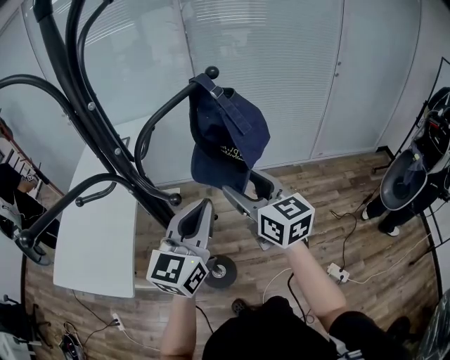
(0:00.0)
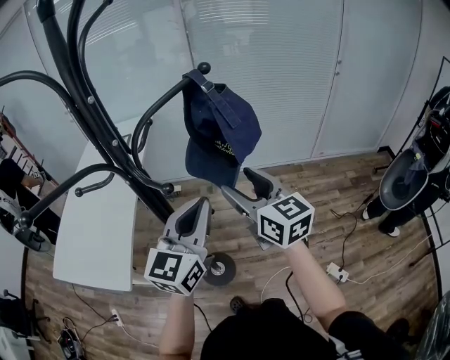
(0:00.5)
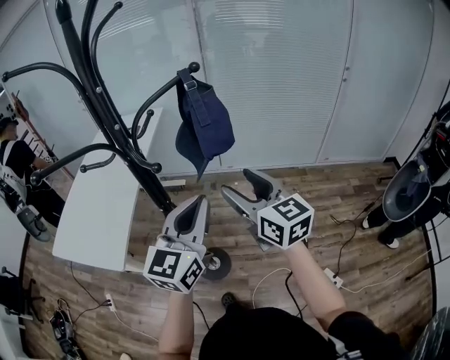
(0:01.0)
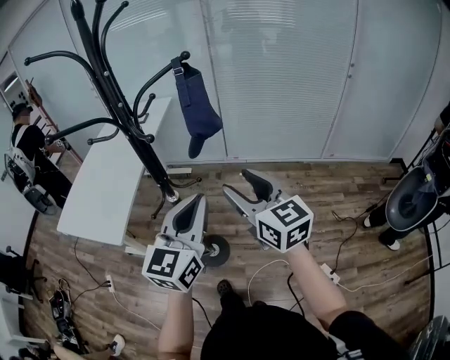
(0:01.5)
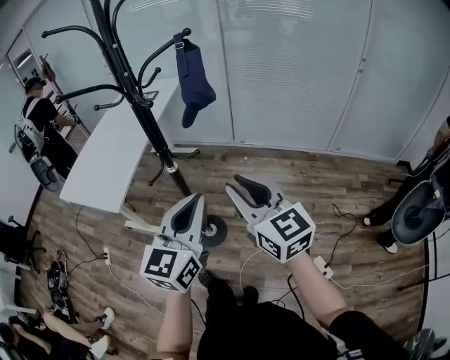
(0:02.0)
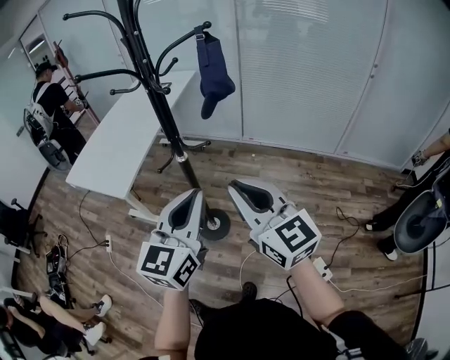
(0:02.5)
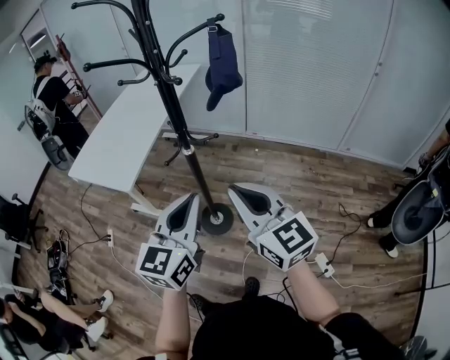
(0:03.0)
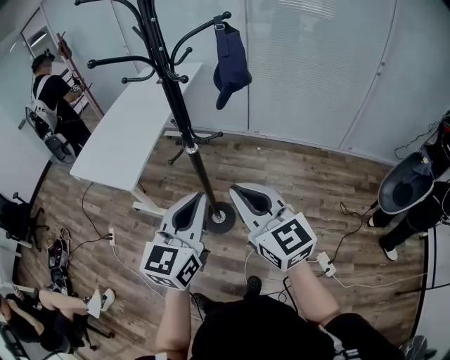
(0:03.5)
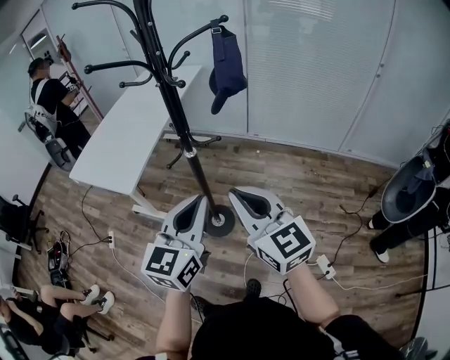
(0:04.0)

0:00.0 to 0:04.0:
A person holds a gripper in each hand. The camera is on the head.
0:00.0 to 0:02.0: Both grippers move backward, about 20 cm. The right gripper closes up.
0:02.0 to 0:04.0: The grippers both shift to the left by approximately 5 cm.

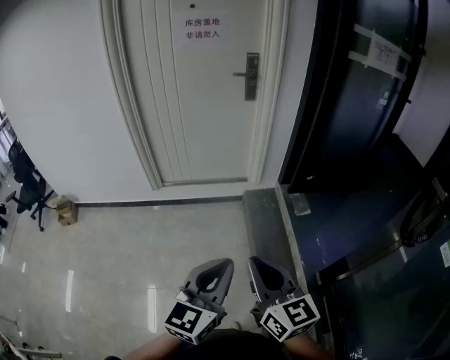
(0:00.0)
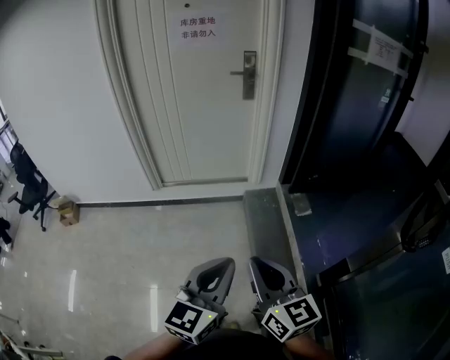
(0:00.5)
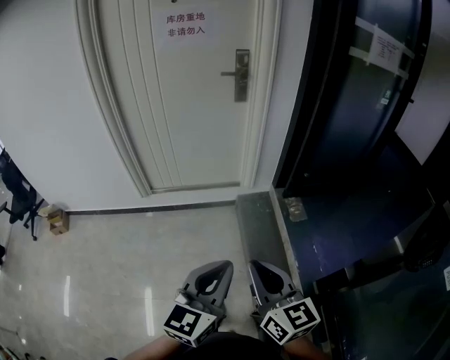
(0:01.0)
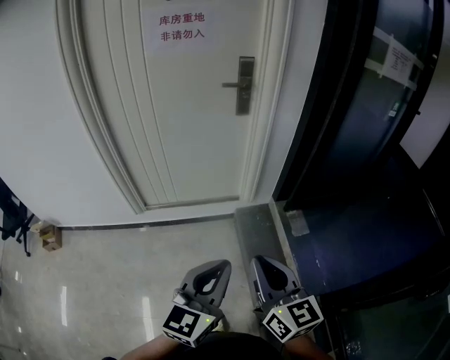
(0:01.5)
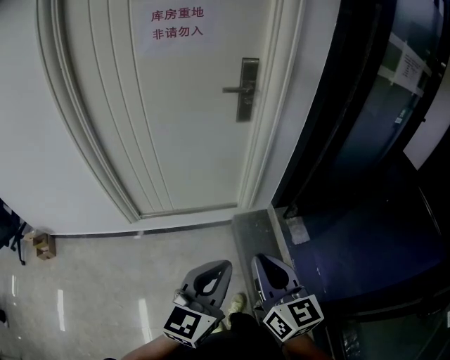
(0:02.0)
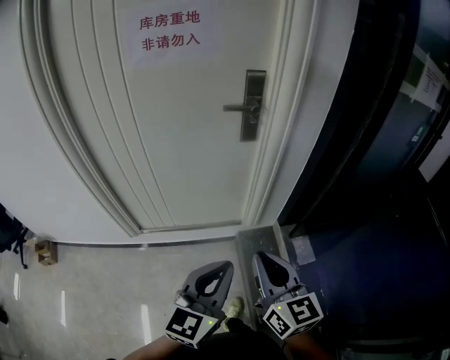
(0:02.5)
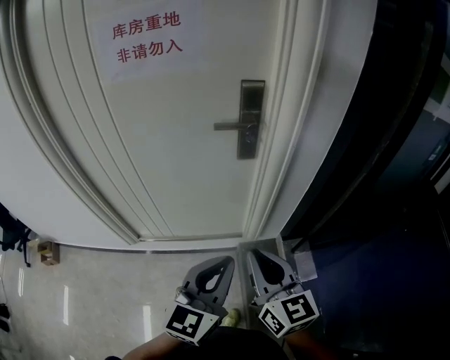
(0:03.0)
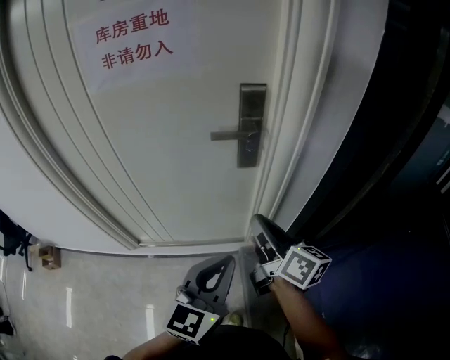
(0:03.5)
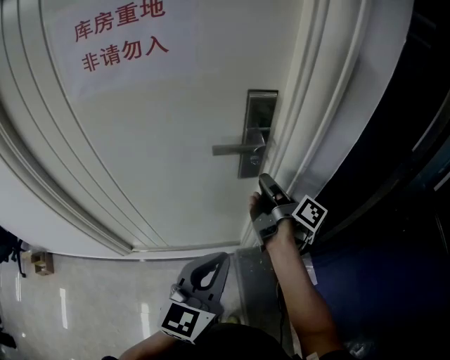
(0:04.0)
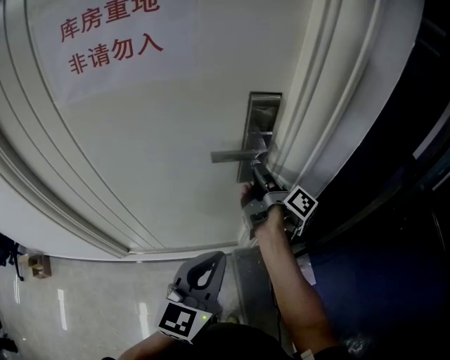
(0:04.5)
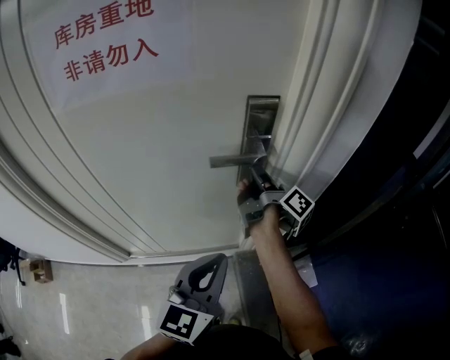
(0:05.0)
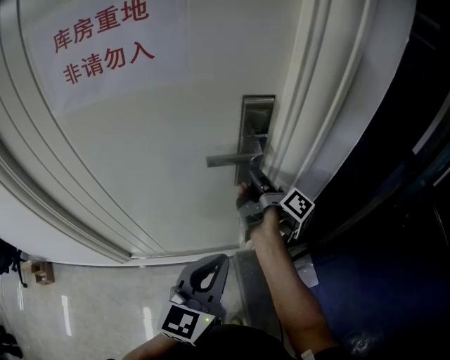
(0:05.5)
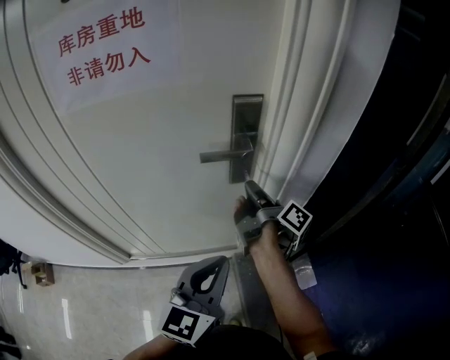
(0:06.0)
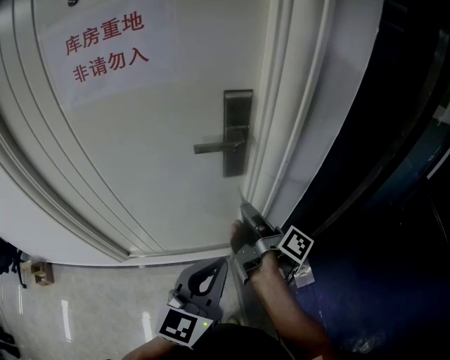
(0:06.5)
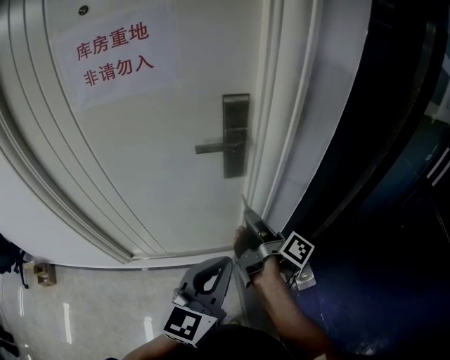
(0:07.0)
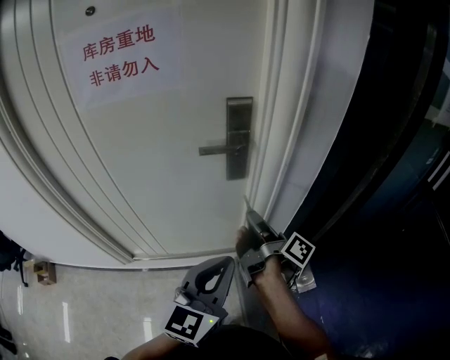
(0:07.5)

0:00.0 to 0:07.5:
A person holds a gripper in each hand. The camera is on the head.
0:00.0 to 0:02.0: Both grippers travel together forward, approximately 35 cm.
0:02.0 to 0:04.0: Both grippers travel together forward, approximately 50 cm. The right gripper twists about 70 degrees clockwise, seen from behind.
0:04.0 to 0:05.5: The right gripper shifts some 5 cm forward.
0:05.5 to 0:07.5: The right gripper moves backward, some 15 cm. Meanwhile the left gripper shifts about 10 cm backward and to the right.

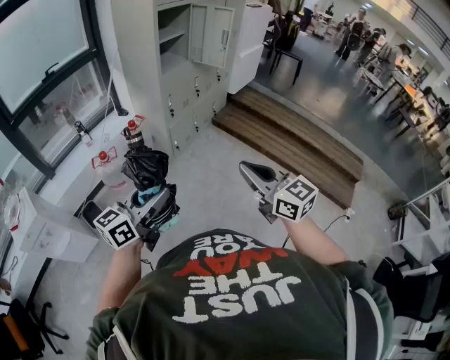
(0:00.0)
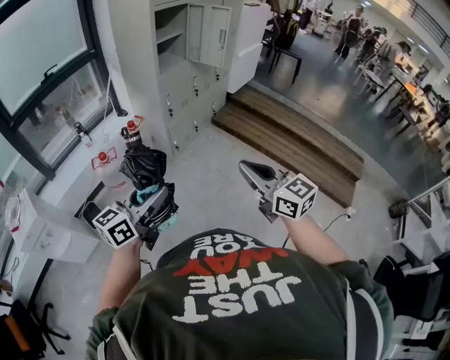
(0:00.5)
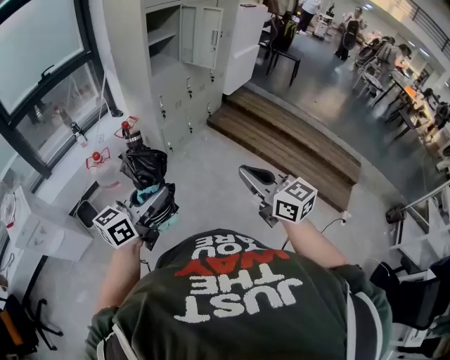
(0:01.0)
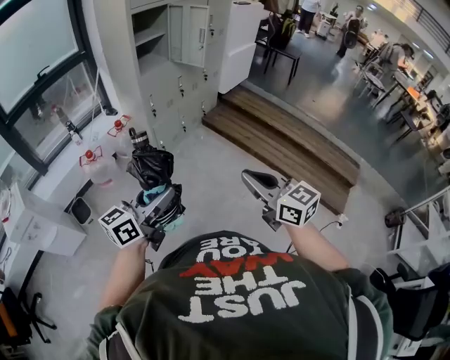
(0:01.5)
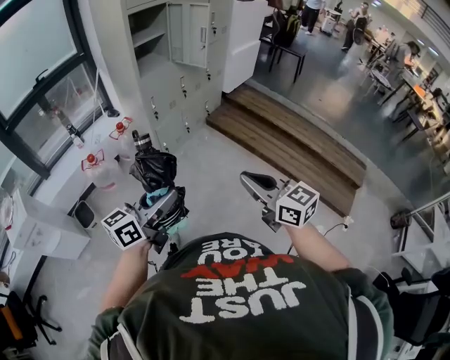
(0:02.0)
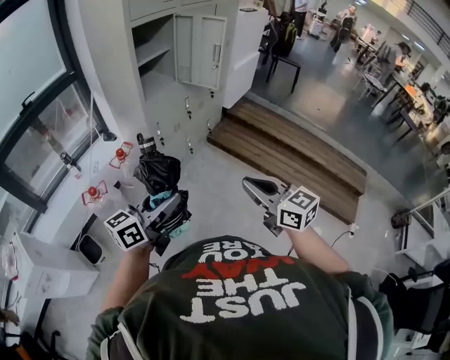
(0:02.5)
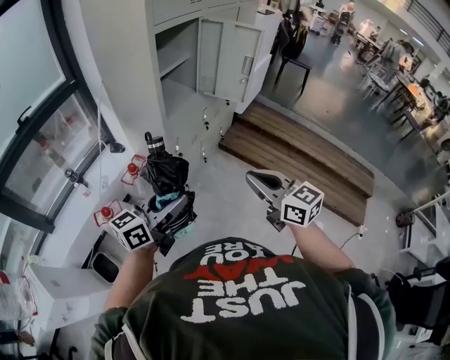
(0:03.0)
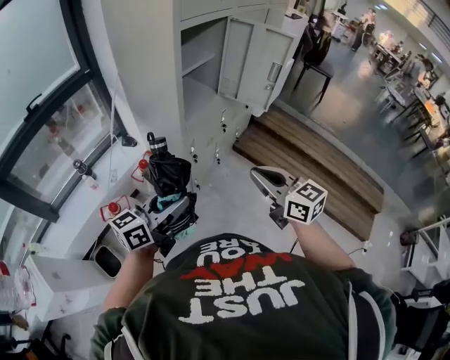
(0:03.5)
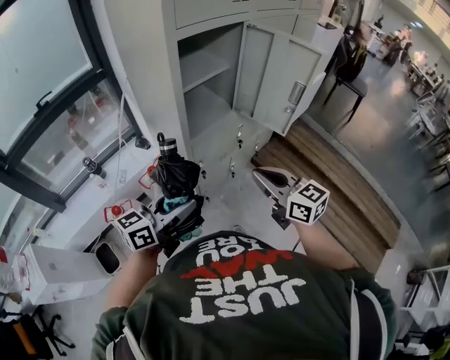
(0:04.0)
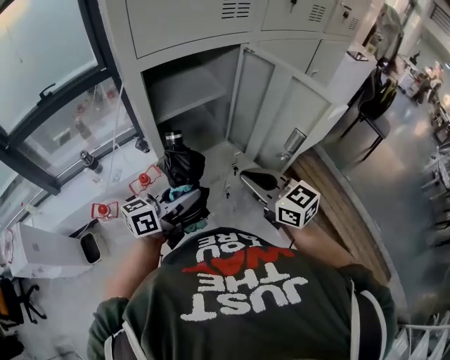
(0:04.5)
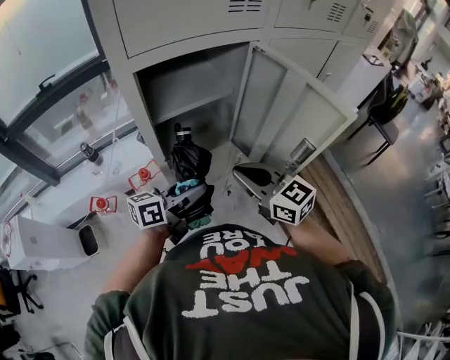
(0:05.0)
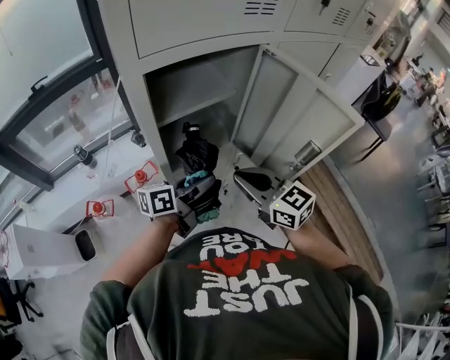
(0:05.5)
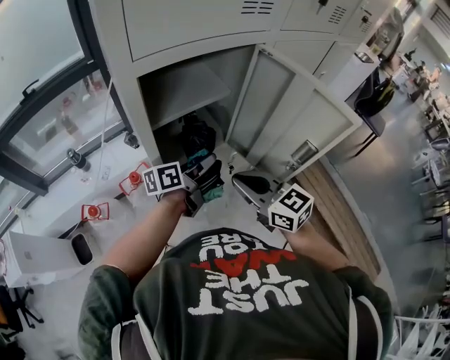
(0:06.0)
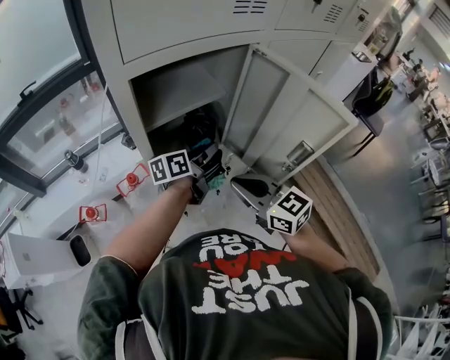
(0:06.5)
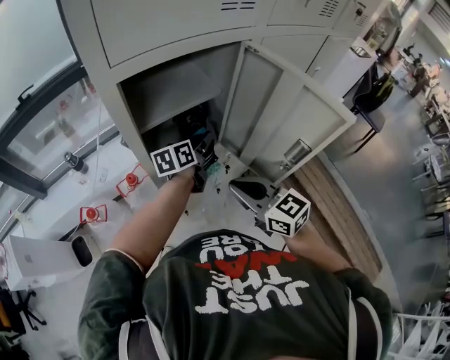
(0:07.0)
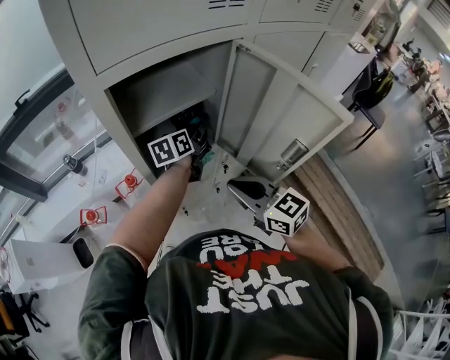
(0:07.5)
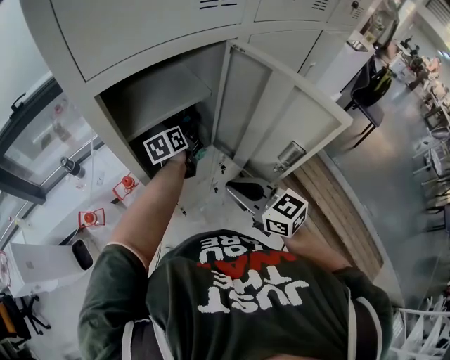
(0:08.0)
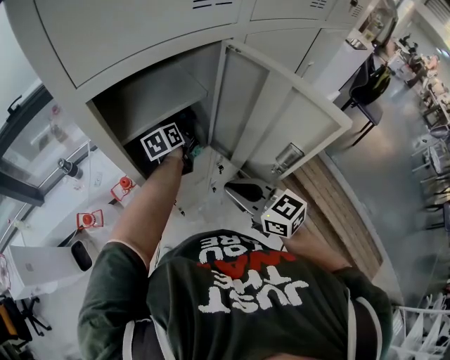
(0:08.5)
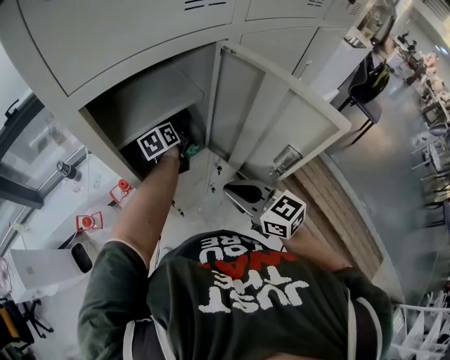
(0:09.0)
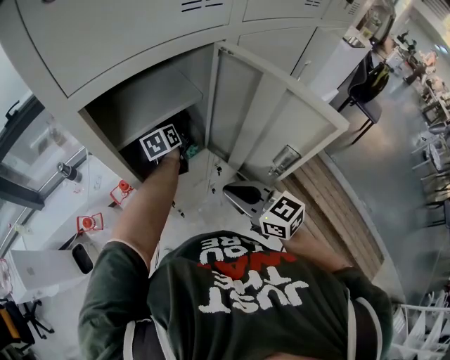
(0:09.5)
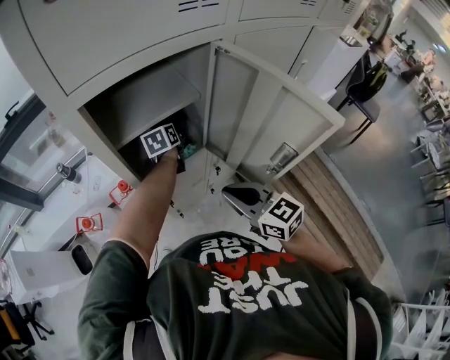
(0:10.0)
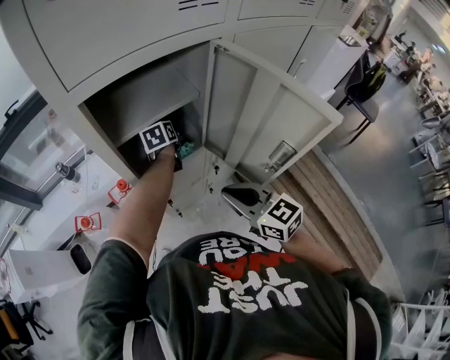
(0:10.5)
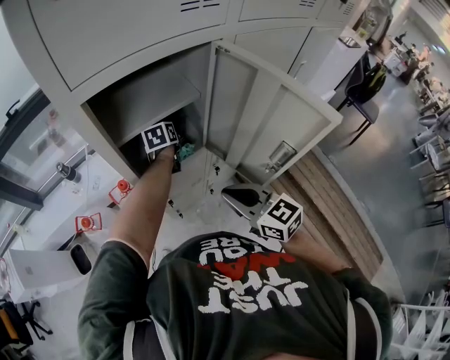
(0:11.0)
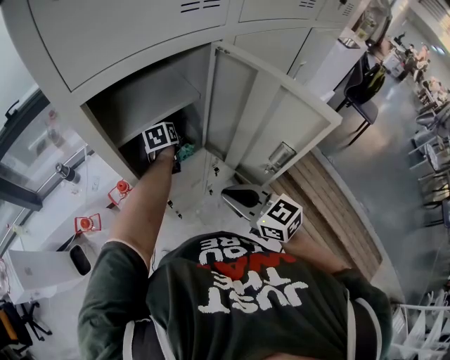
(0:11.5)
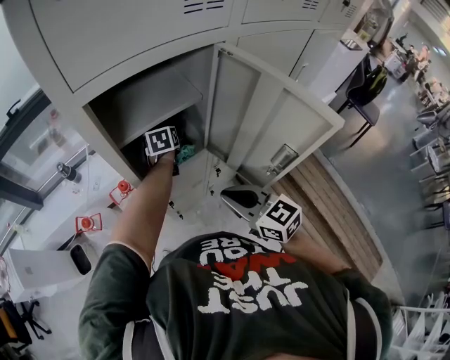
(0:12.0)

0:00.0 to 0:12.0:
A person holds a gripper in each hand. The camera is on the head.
0:00.0 to 0:02.0: Both grippers move to the right, some 15 cm.
0:02.0 to 0:04.0: The two grippers travel together, forward and to the left, approximately 60 cm.
0:04.0 to 0:06.0: The left gripper shifts about 35 cm forward and to the right, and turns by about 30 degrees; the right gripper travels forward by roughly 20 cm.
0:06.0 to 0:08.0: The left gripper goes about 15 cm forward, and turns by about 30 degrees.
0:08.0 to 0:10.0: The left gripper ends up about 5 cm from where it was.
0:10.0 to 0:12.0: There are only small adjustments of the grippers.

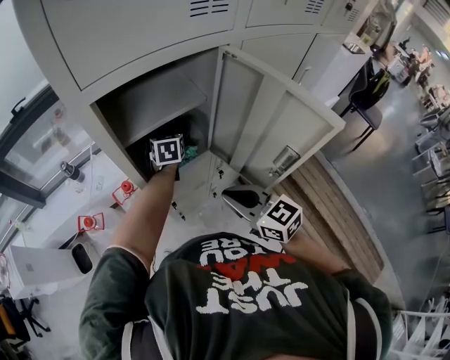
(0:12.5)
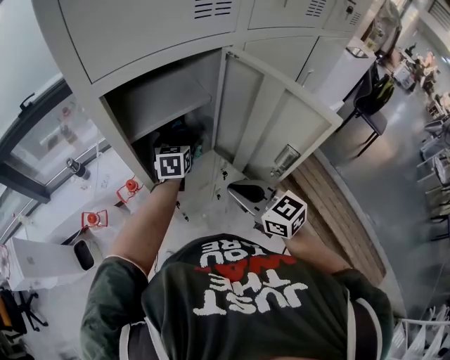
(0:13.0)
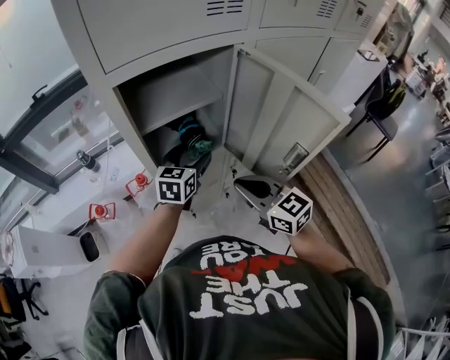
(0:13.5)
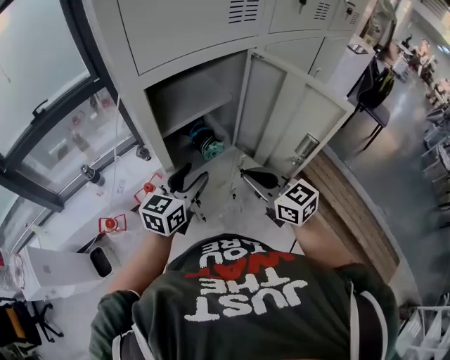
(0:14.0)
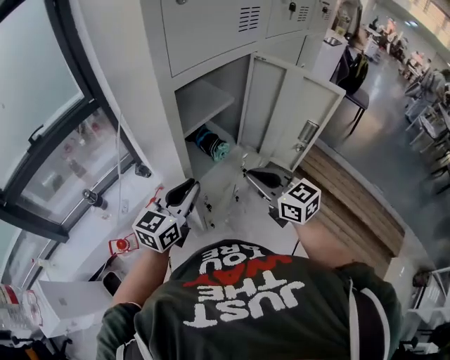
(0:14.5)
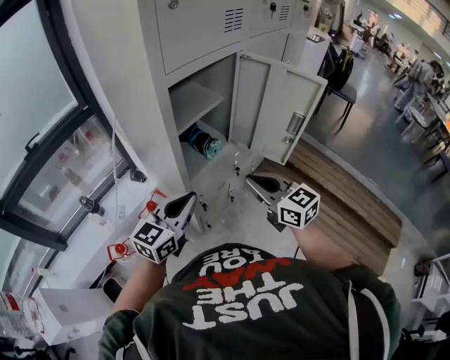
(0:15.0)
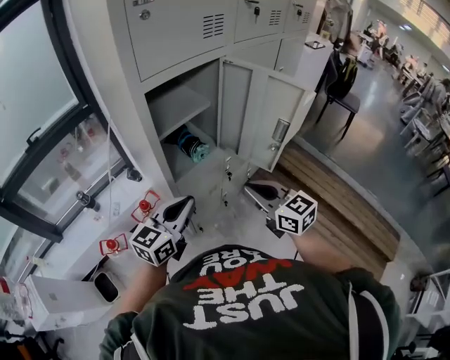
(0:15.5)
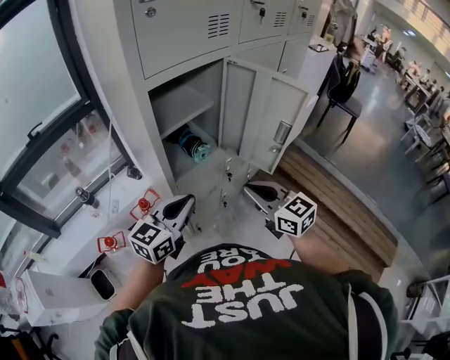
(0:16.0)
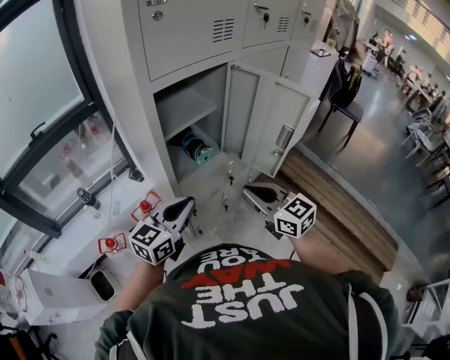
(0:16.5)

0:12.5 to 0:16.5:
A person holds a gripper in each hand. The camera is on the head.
0:12.5 to 0:14.5: The left gripper ends up about 35 cm from where it was, rotates about 50 degrees, and closes. The right gripper moves approximately 10 cm.
0:14.5 to 0:16.5: The two grippers go approximately 10 cm backward and to the right.
